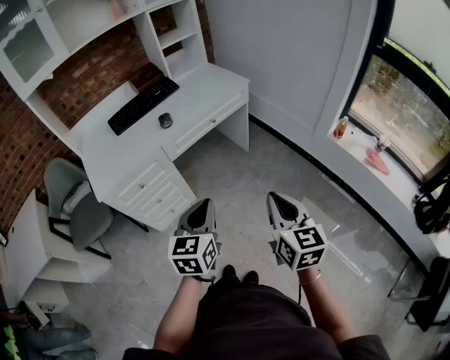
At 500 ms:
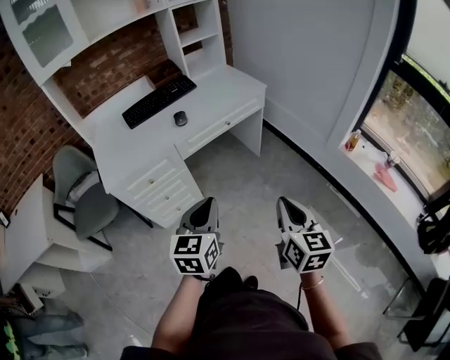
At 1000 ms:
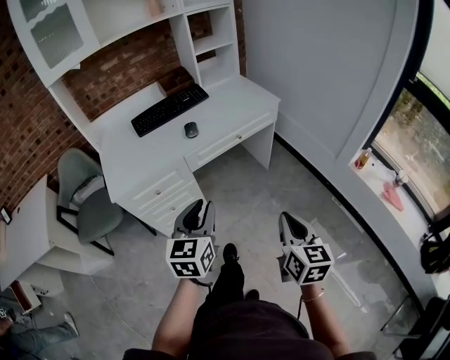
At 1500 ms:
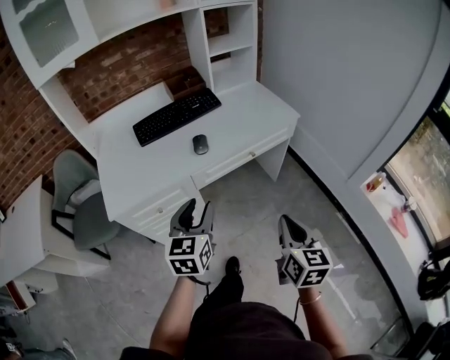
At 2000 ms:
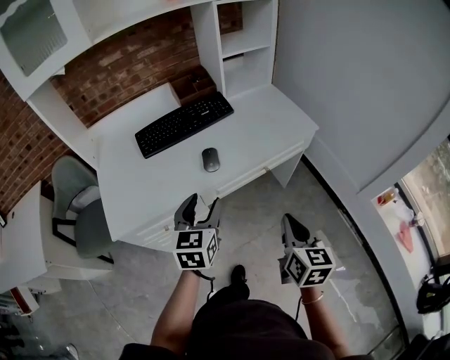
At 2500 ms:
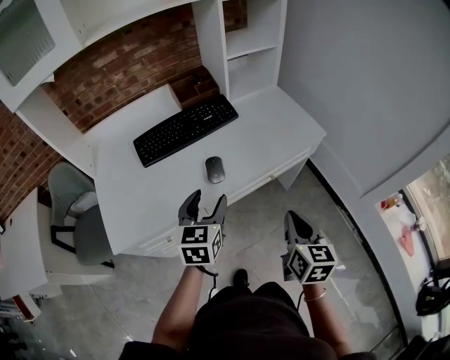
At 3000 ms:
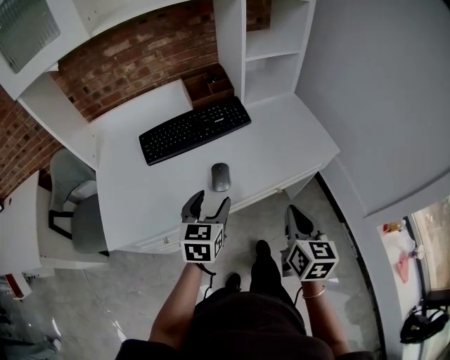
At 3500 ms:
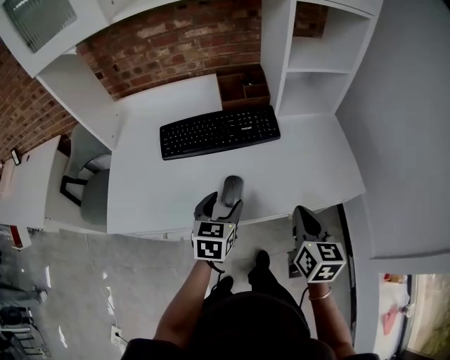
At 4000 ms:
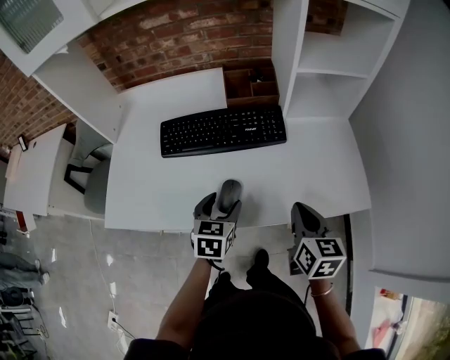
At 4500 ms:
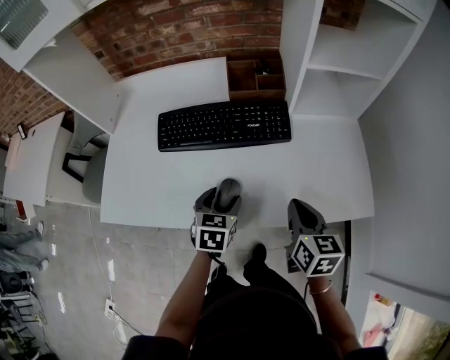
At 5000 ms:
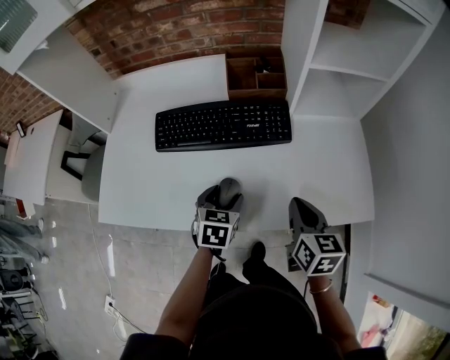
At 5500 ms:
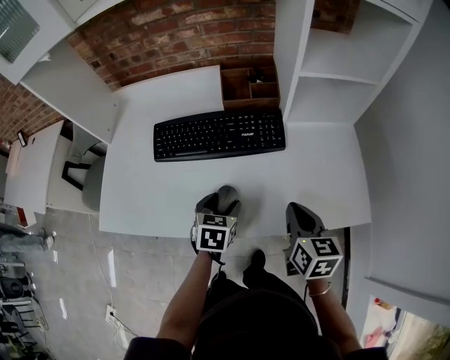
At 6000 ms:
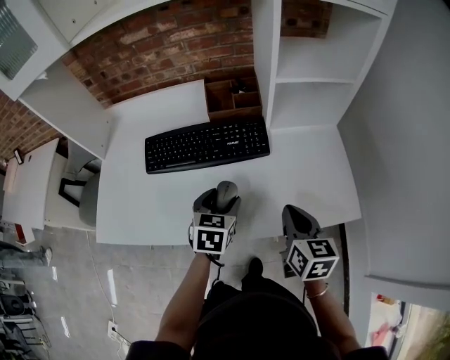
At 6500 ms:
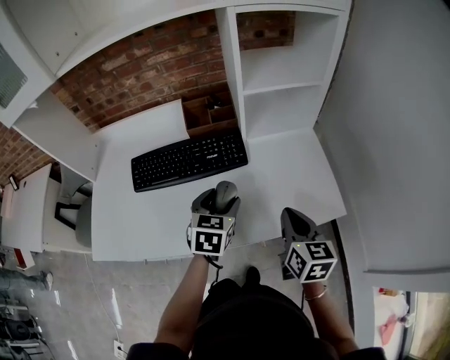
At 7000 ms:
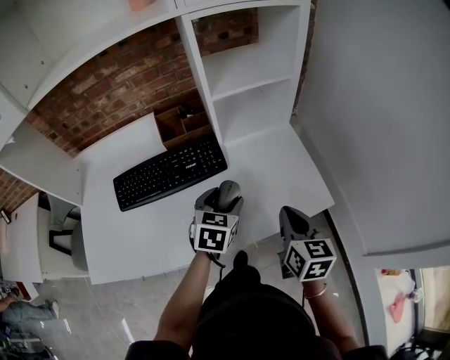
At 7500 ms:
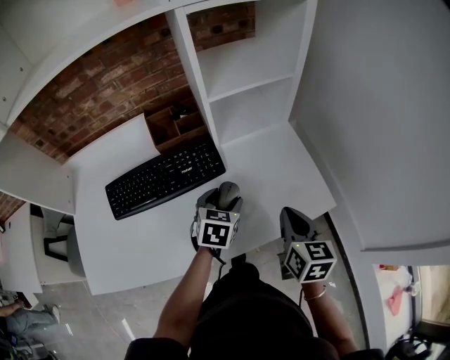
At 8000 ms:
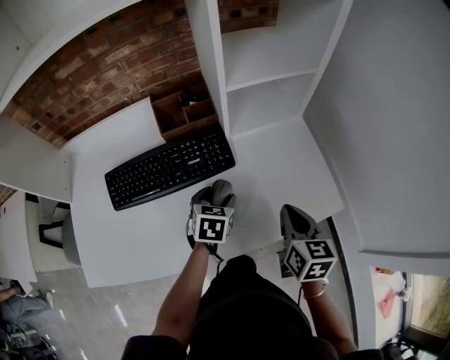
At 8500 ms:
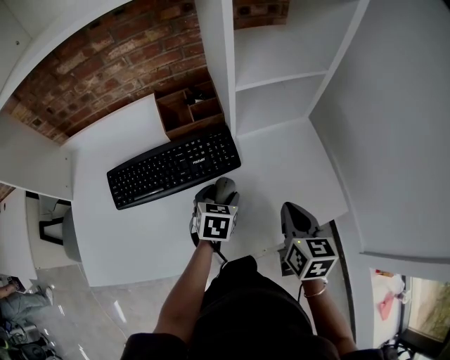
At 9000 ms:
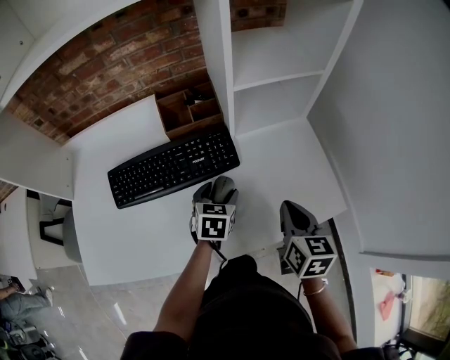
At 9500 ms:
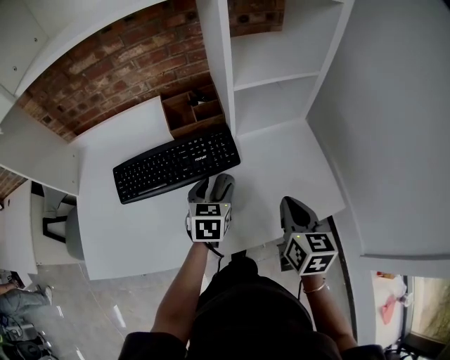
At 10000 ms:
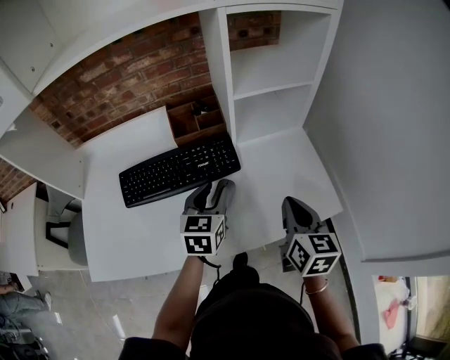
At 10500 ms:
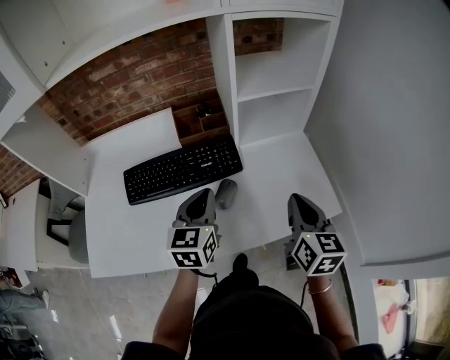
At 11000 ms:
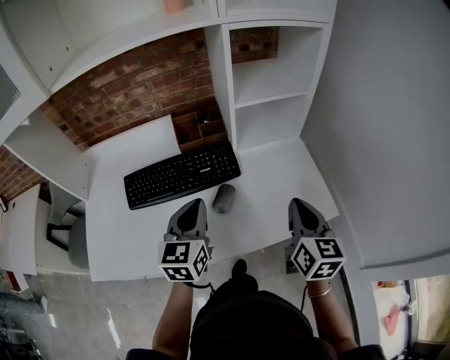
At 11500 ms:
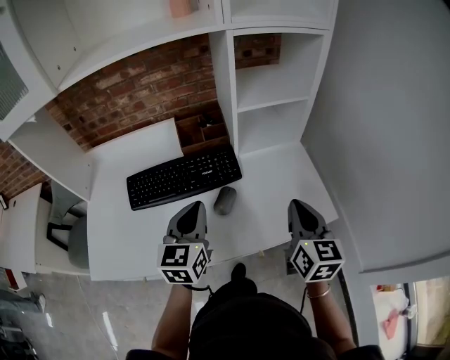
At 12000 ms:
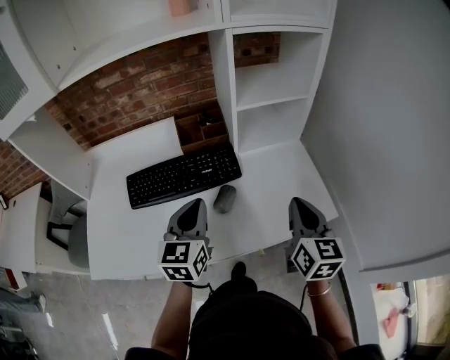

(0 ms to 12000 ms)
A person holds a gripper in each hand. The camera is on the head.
0 ms - 2000 ms: The left gripper travels forward and to the left by about 35 cm, and opens, while the right gripper travels forward by some 30 cm.
2000 ms - 4000 ms: The left gripper is displaced forward and downward by some 25 cm, and swivels about 30 degrees; the right gripper moves forward, some 30 cm, and changes its angle by about 30 degrees.
4000 ms - 6000 ms: The left gripper goes approximately 10 cm forward and to the right.
6000 ms - 8000 ms: The left gripper is displaced forward and to the right by approximately 10 cm; the right gripper goes approximately 5 cm to the right.
8000 ms - 10000 ms: The right gripper goes some 5 cm upward. The left gripper is displaced upward by about 10 cm, changes its angle by about 20 degrees, and closes.
10000 ms - 12000 ms: The right gripper travels upward by roughly 5 cm; the left gripper goes about 10 cm upward and backward, and closes up.

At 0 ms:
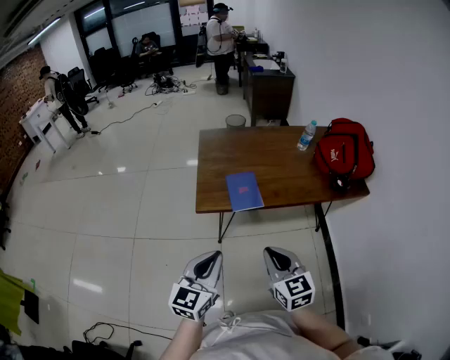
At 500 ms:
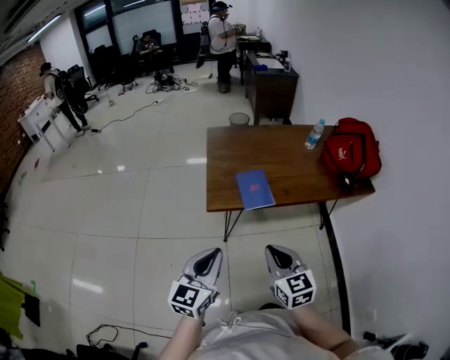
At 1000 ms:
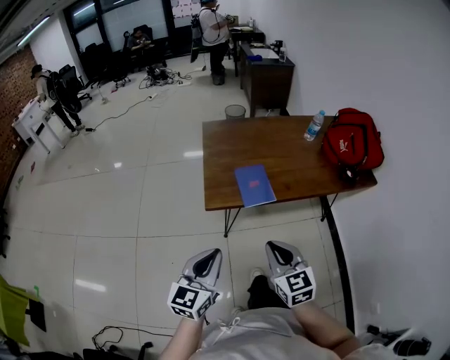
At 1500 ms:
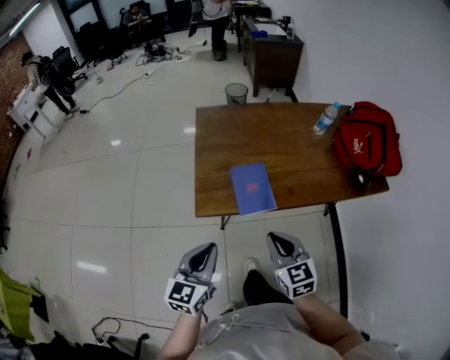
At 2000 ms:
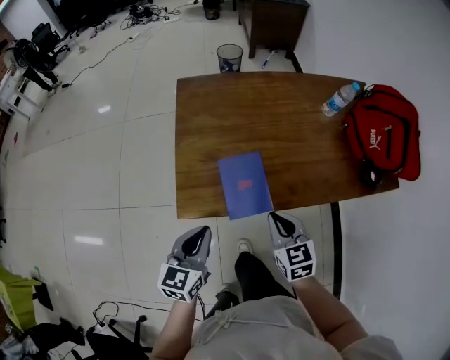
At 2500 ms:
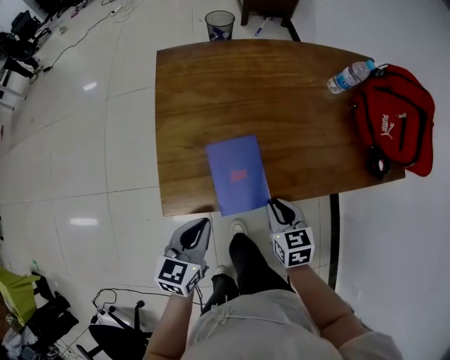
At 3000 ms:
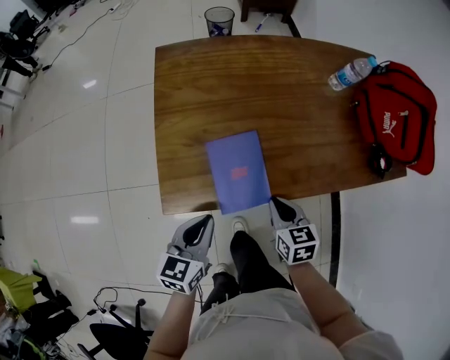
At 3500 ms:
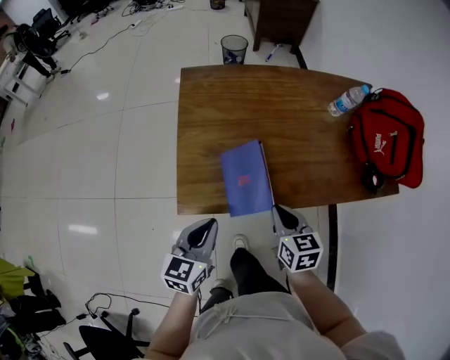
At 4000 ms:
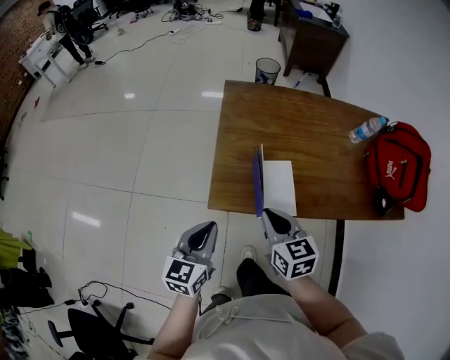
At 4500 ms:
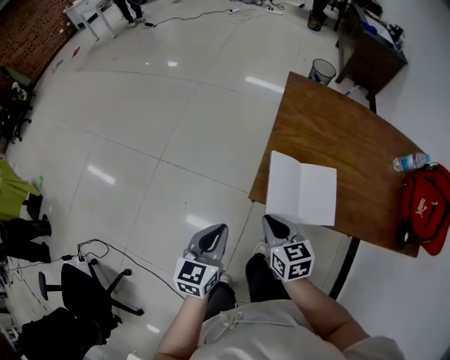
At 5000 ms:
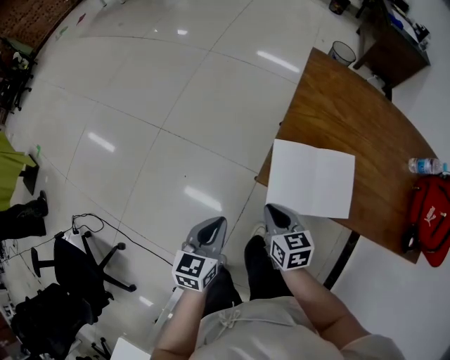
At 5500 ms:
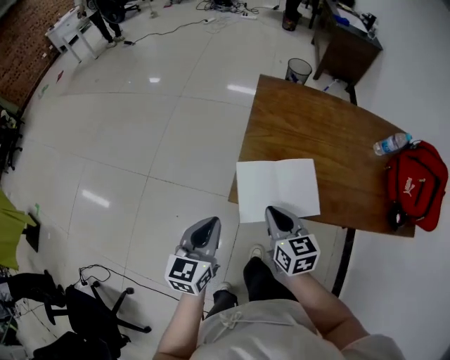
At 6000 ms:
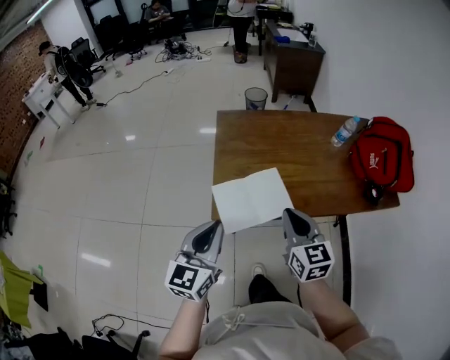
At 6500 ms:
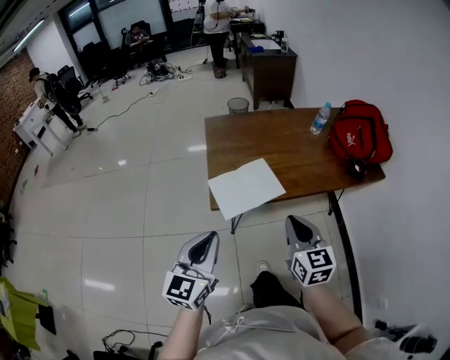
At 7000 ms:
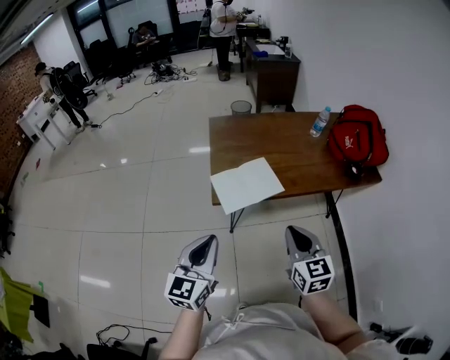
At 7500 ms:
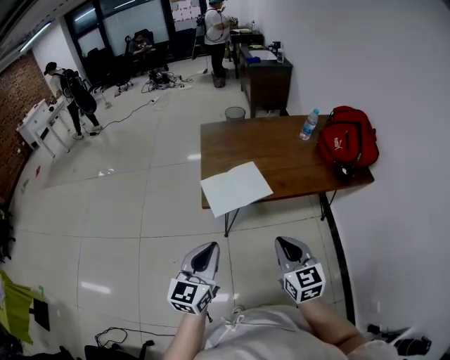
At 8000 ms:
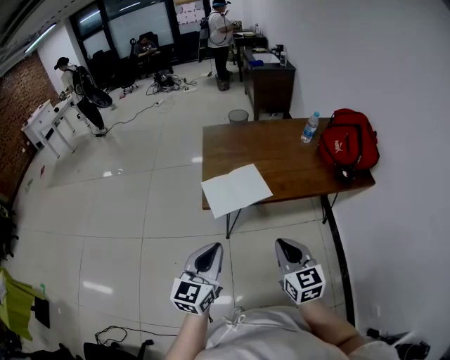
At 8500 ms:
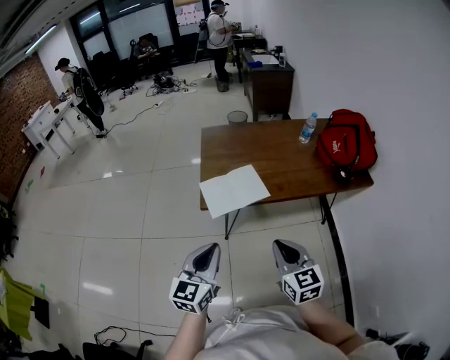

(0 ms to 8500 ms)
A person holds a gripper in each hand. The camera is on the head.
0 ms - 2000 ms: The grippers both shift forward and downward by roughly 30 cm.
2000 ms - 4000 ms: The right gripper heads to the left and upward, covering roughly 15 cm. Meanwhile the left gripper moves to the left, approximately 5 cm.
4000 ms - 6500 ms: The left gripper moves approximately 20 cm, and rotates approximately 20 degrees; the right gripper shifts by approximately 20 cm, and turns by some 30 degrees.
6500 ms - 8500 ms: The left gripper travels backward and to the right by approximately 10 cm. The right gripper is displaced backward by approximately 10 cm.

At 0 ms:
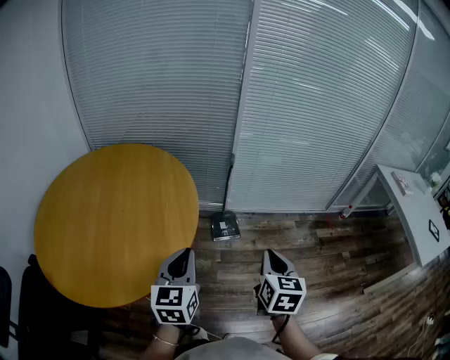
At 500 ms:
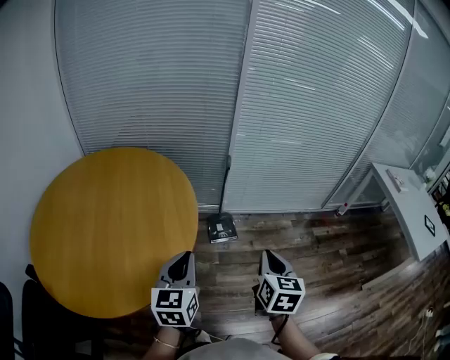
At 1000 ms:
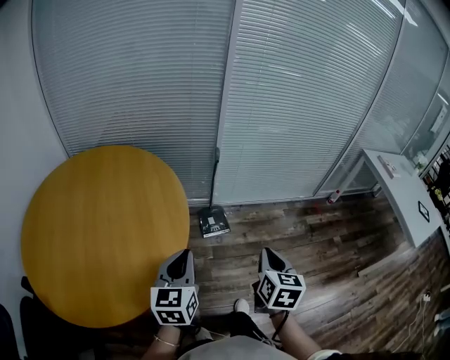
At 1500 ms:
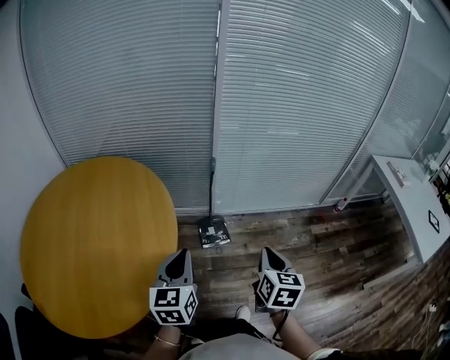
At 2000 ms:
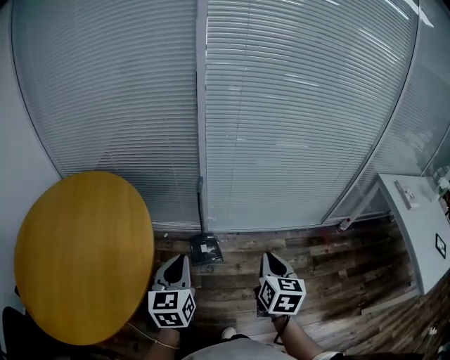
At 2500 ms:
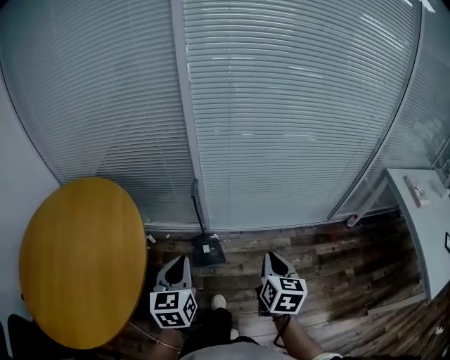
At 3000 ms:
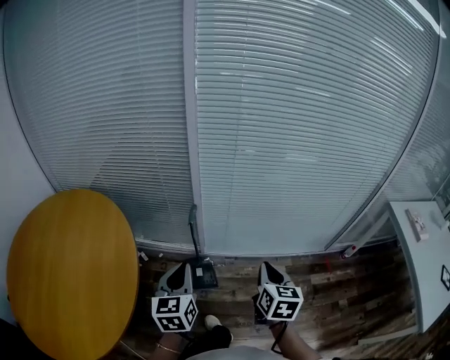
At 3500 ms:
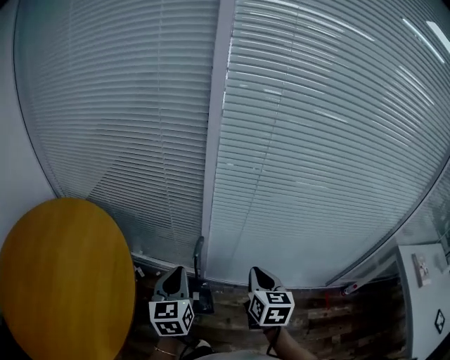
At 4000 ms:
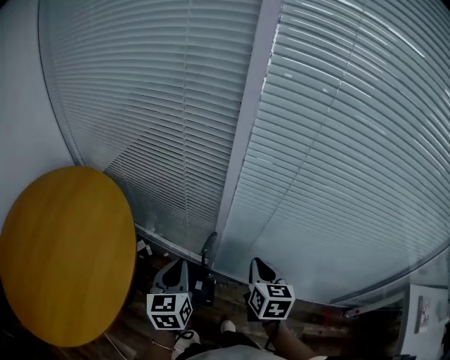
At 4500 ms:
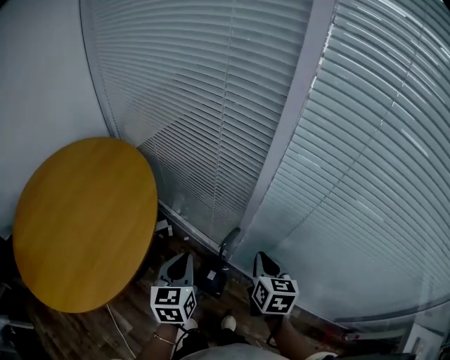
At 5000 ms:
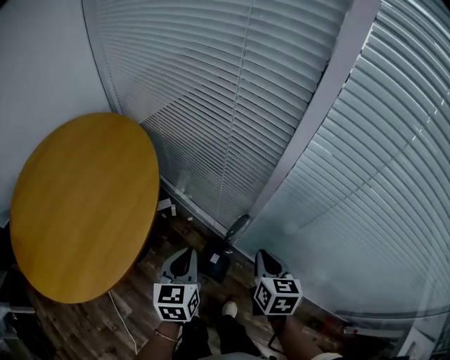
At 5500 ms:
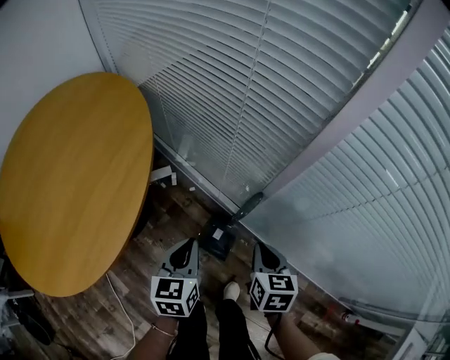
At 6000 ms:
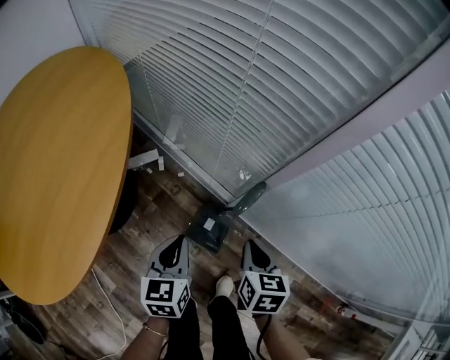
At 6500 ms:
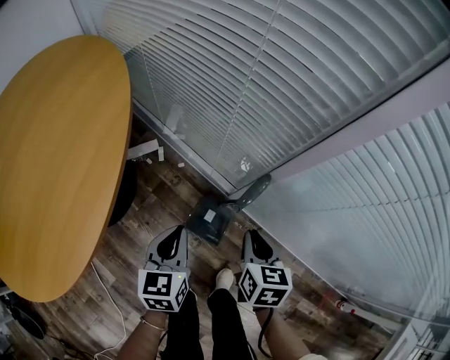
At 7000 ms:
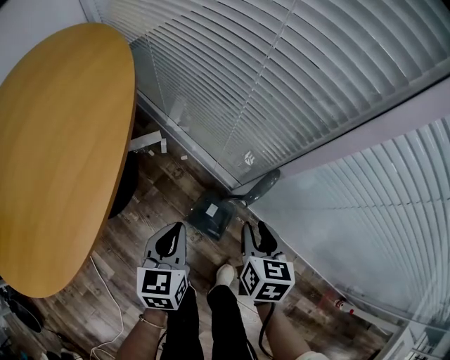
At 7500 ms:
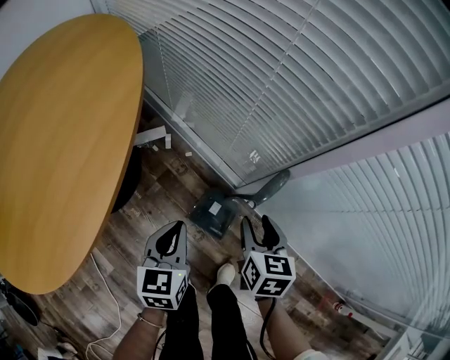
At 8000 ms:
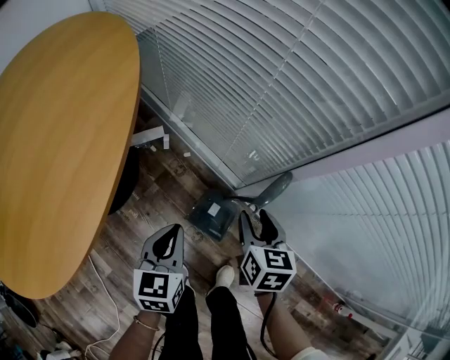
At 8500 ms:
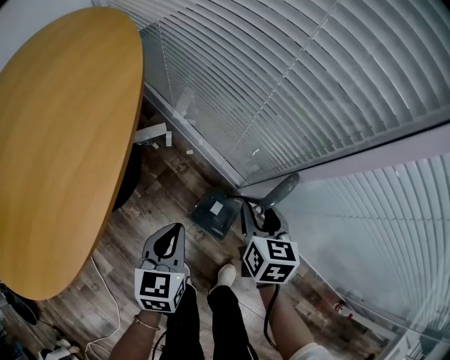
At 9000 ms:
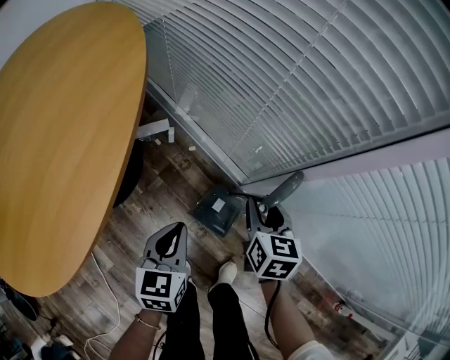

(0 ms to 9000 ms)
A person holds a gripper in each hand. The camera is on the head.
0 ms - 2000 ms: Both grippers move forward and to the right, about 20 cm.
2000 ms - 4500 ms: The left gripper changes place by roughly 25 cm, and swivels approximately 30 degrees; the right gripper ends up approximately 35 cm from where it was, and changes its angle by approximately 40 degrees.
4500 ms - 7000 ms: The two grippers go approximately 20 cm downward. The right gripper opens.
7000 ms - 9000 ms: The right gripper goes some 5 cm forward.
